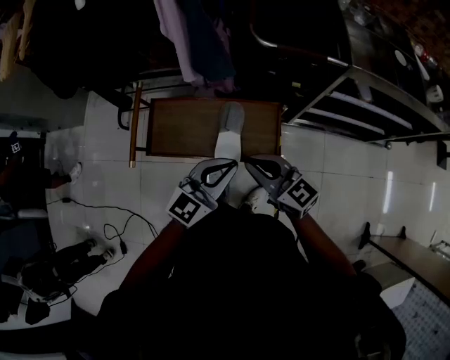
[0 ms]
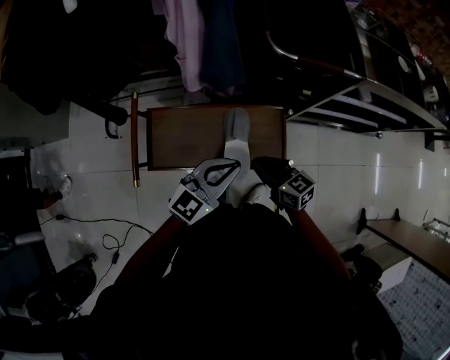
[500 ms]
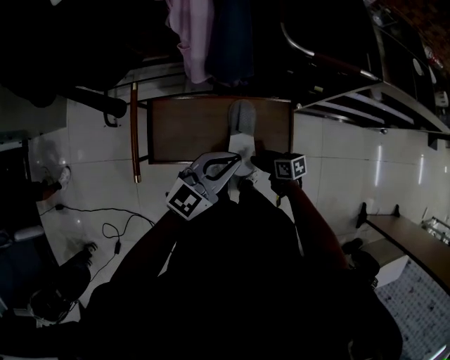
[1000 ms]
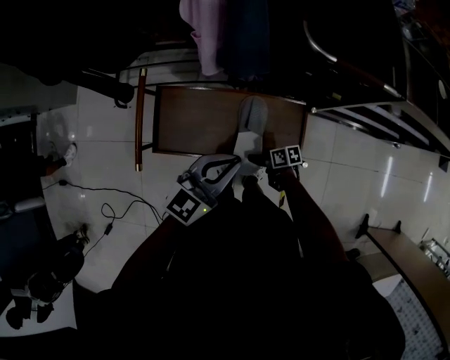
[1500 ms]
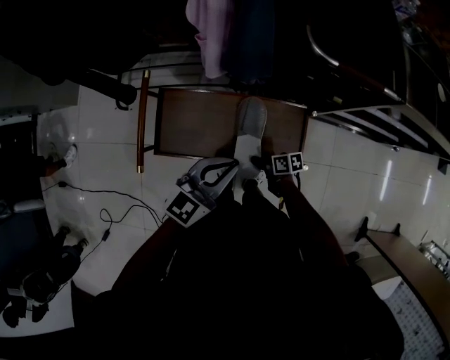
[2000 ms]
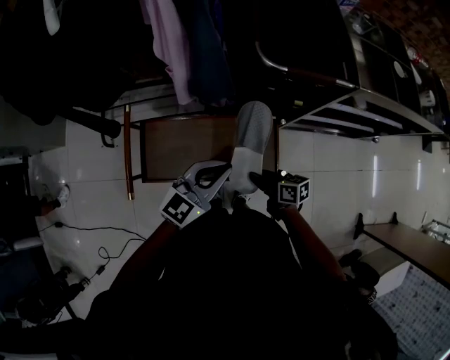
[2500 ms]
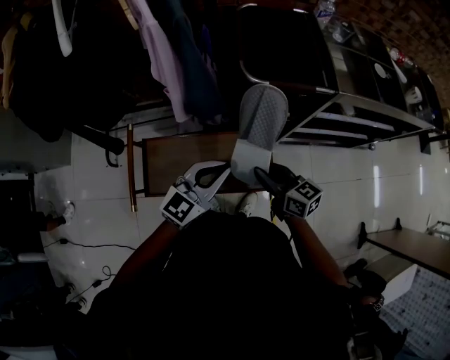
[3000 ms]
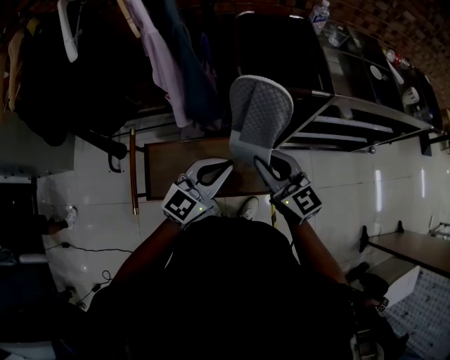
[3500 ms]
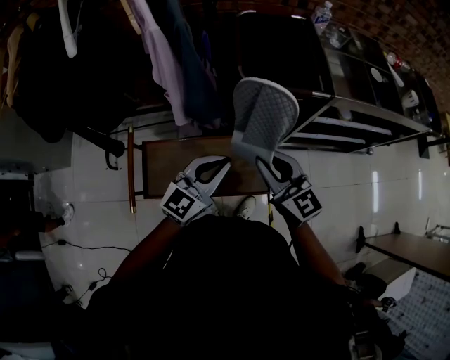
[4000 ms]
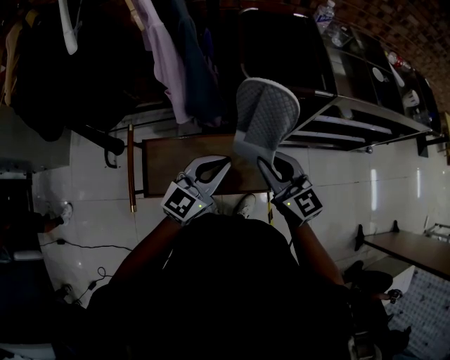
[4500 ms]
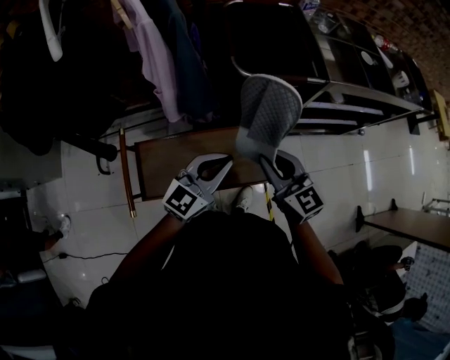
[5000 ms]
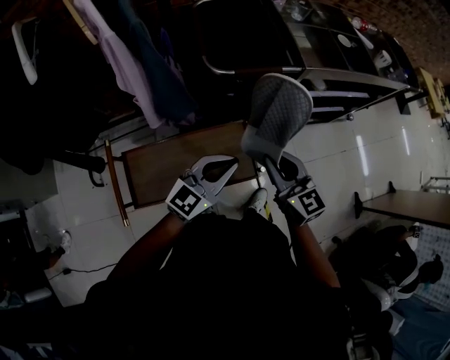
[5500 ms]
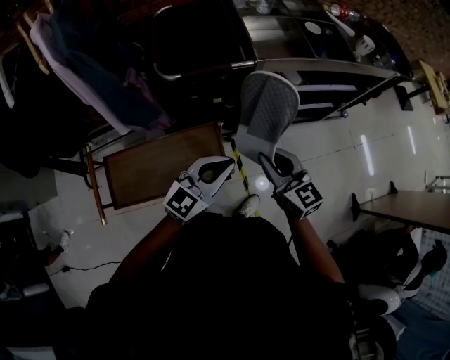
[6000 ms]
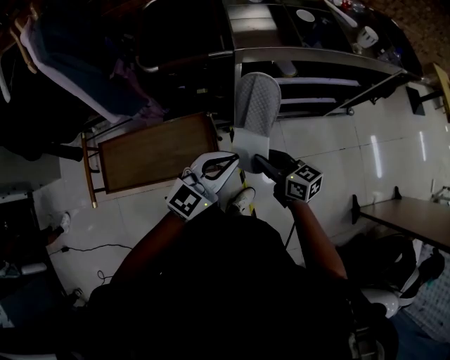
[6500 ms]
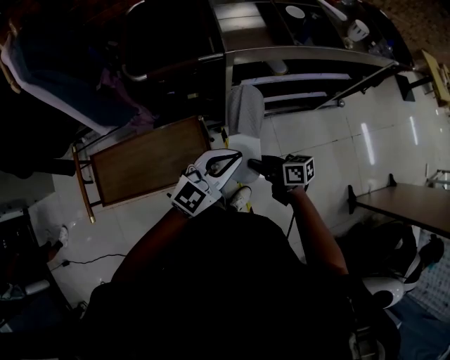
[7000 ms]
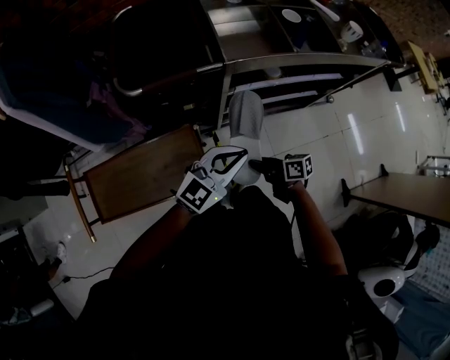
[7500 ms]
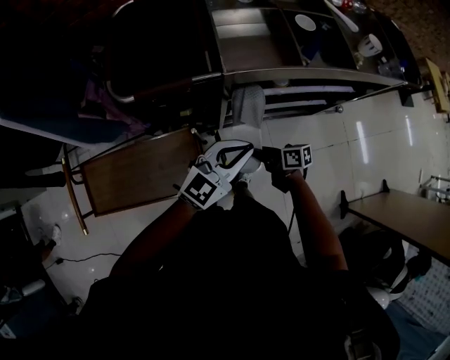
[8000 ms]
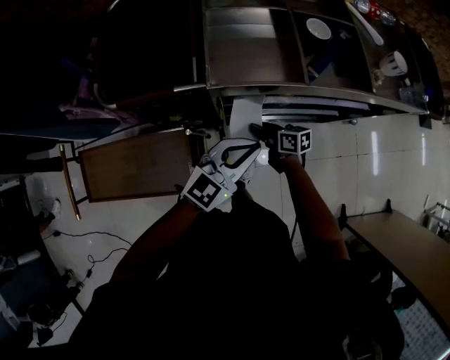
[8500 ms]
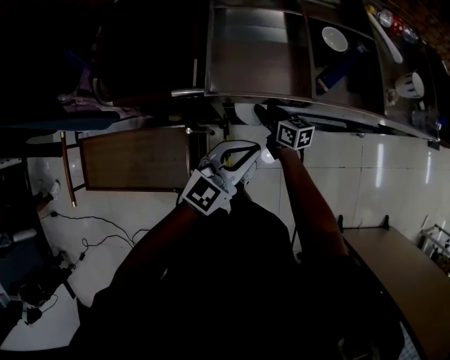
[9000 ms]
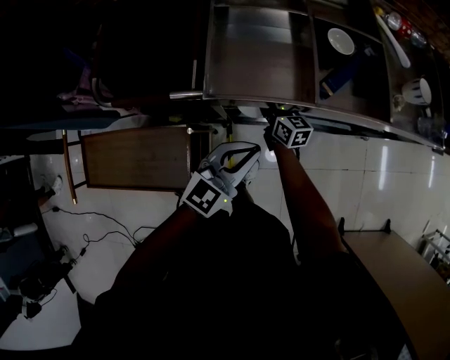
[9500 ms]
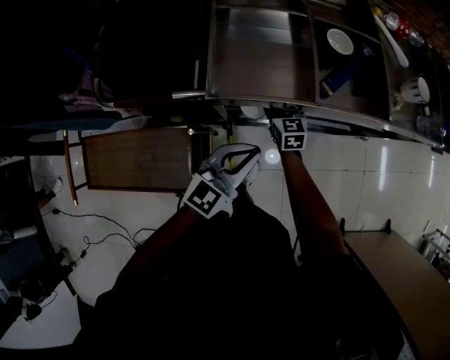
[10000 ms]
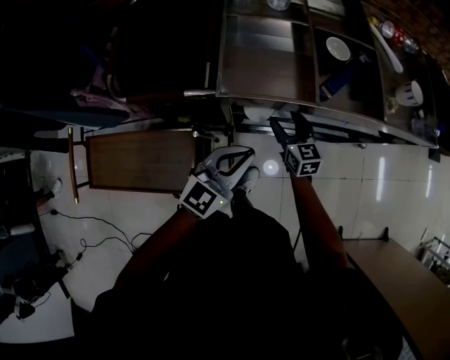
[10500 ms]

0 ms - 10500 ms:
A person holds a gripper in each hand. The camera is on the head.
0 ms - 2000 ms: The left gripper changes place by some 15 cm, while the right gripper heads downward, covering some 35 cm, rotates around the line of its fingers by roughly 50 degrees, clockwise from behind, and opens and closes again.
2000 ms - 4000 ms: The left gripper heads upward, covering about 10 cm. The right gripper heads upward, covering roughly 40 cm, and changes its angle by roughly 80 degrees.
4000 ms - 6500 ms: The left gripper travels to the right by roughly 30 cm; the right gripper goes some 35 cm to the right and downward, and rotates roughly 30 degrees.
6500 ms - 8500 ms: The left gripper heads forward and to the right, covering some 25 cm. The right gripper shifts roughly 30 cm forward and downward, and rotates roughly 20 degrees.
8500 ms - 10500 ms: The right gripper moves forward and upward, some 10 cm, rotates approximately 40 degrees, and opens up.

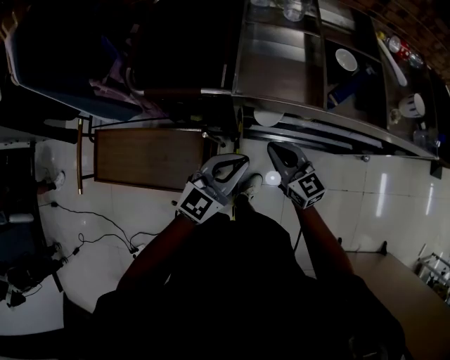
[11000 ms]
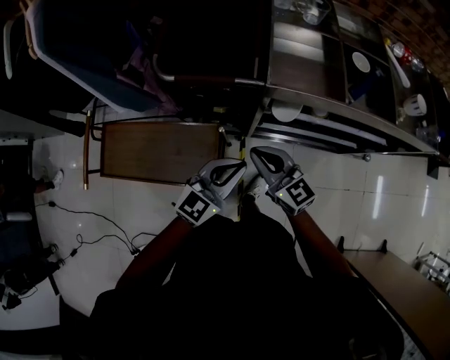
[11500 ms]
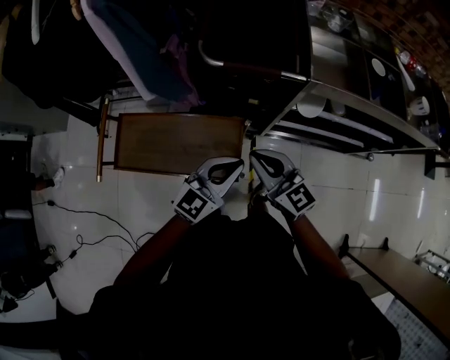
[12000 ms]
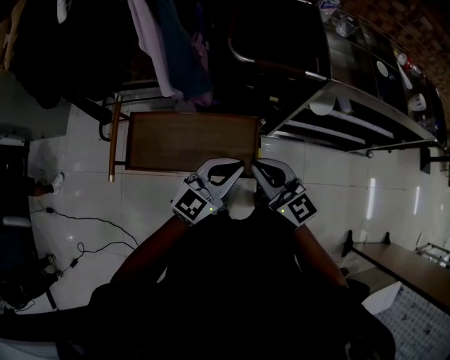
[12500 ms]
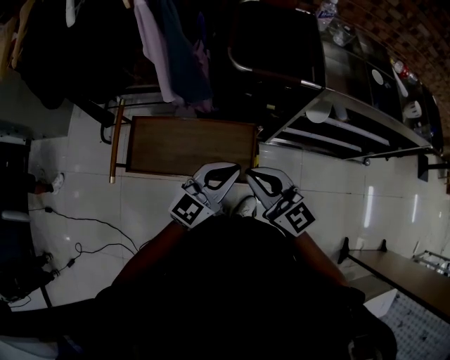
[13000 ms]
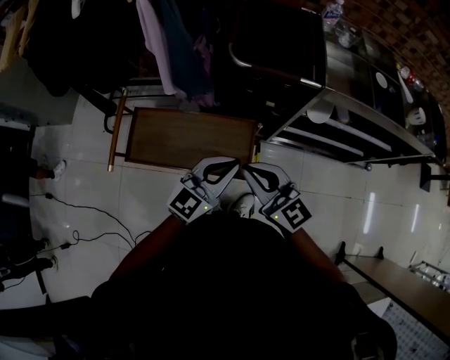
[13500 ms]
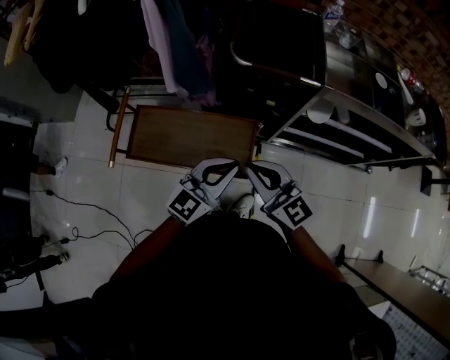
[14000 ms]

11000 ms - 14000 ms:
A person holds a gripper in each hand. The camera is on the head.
11000 ms - 12500 ms: The two grippers go roughly 35 cm to the left and backward.
12500 ms - 14000 ms: The grippers move only a little.

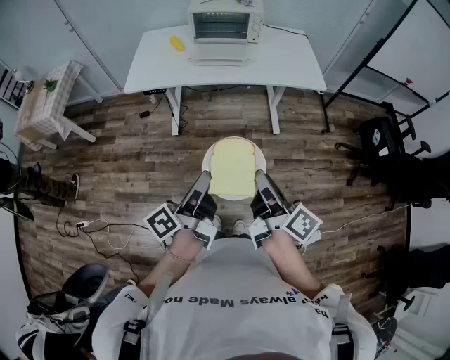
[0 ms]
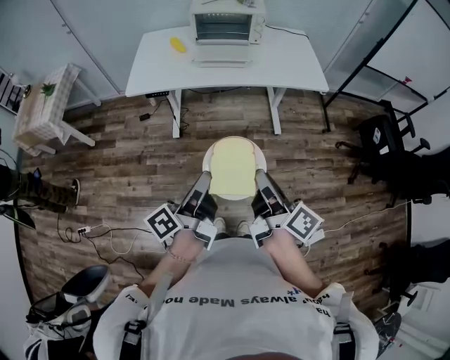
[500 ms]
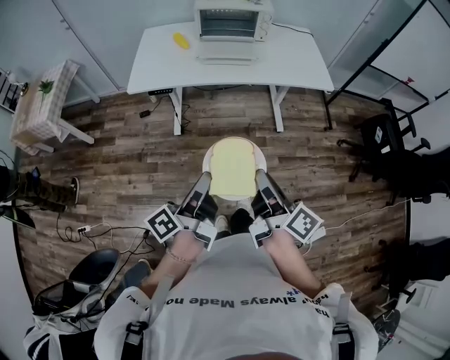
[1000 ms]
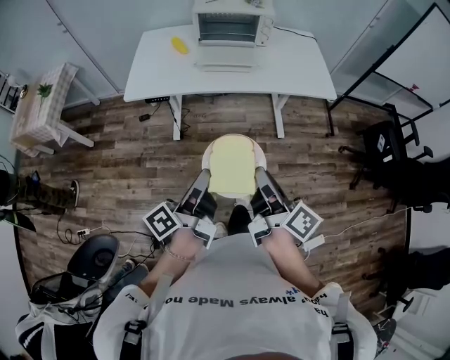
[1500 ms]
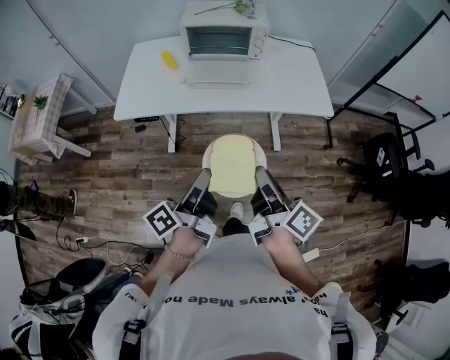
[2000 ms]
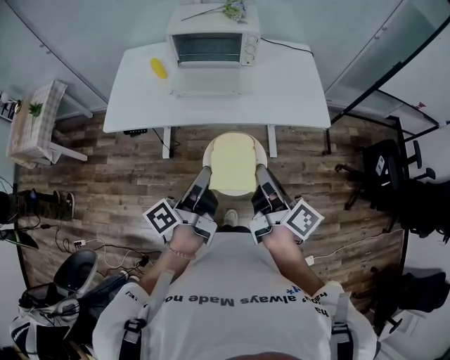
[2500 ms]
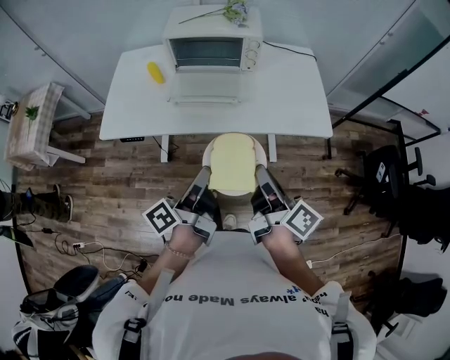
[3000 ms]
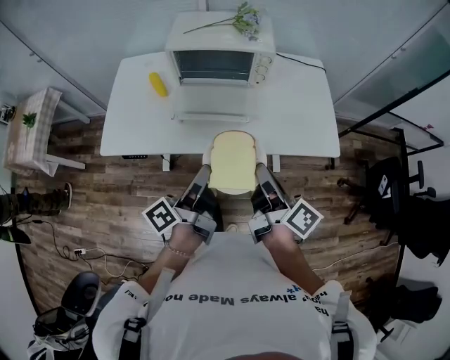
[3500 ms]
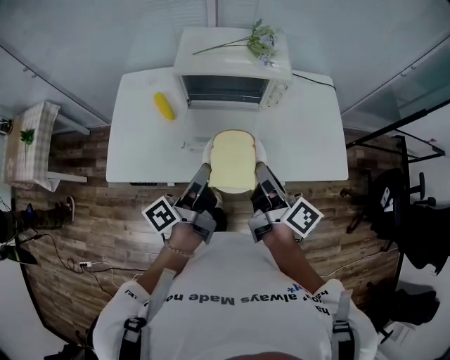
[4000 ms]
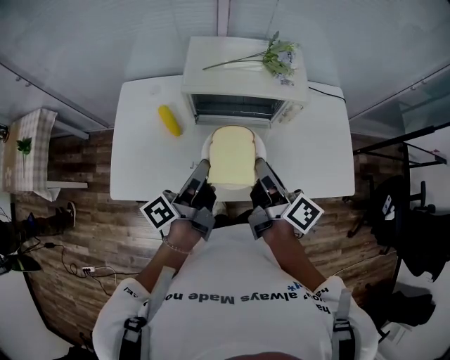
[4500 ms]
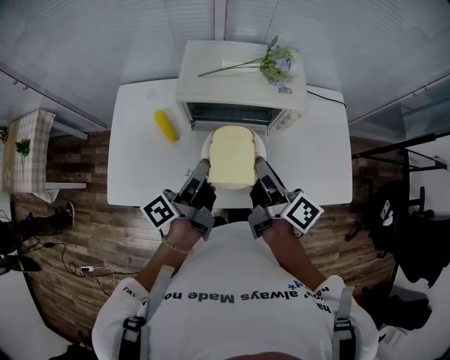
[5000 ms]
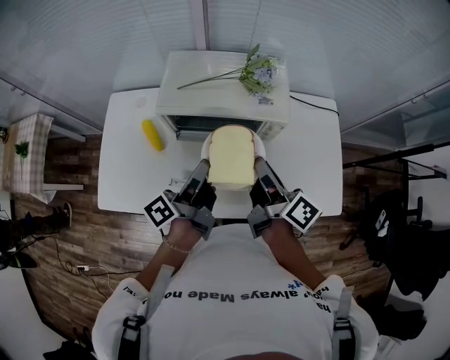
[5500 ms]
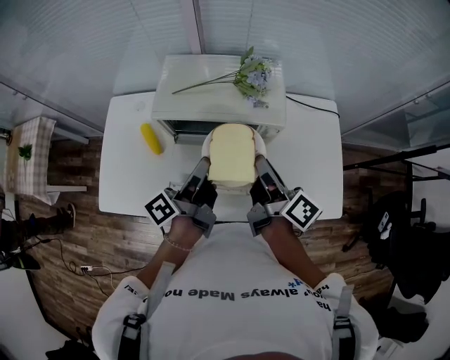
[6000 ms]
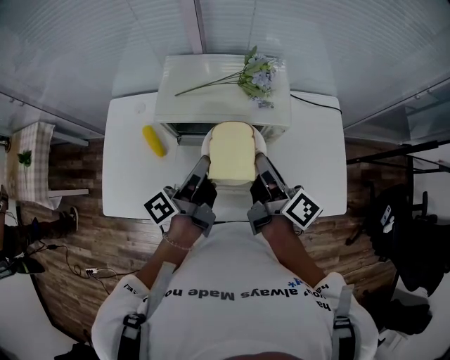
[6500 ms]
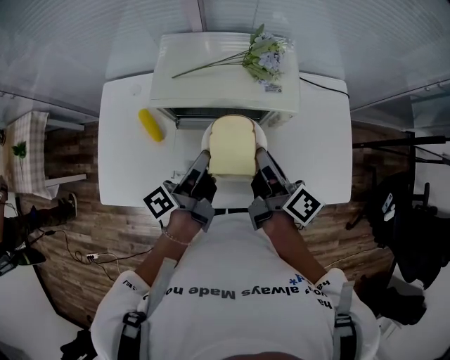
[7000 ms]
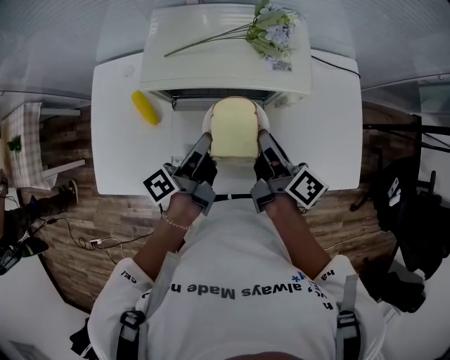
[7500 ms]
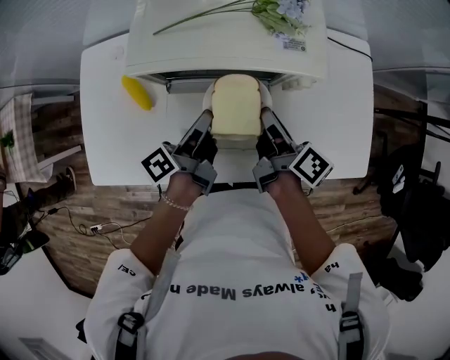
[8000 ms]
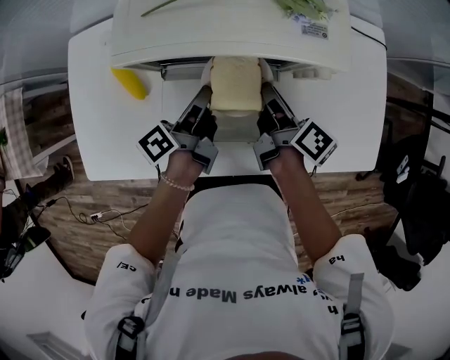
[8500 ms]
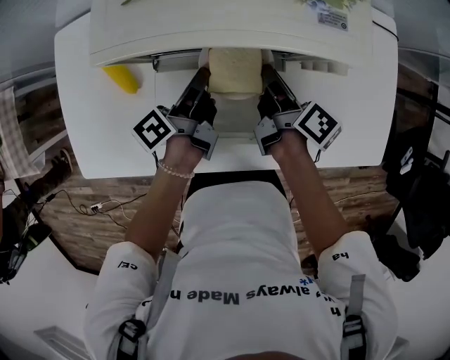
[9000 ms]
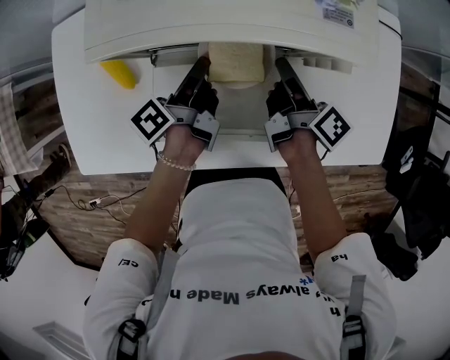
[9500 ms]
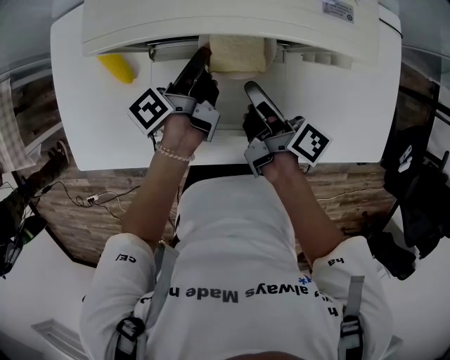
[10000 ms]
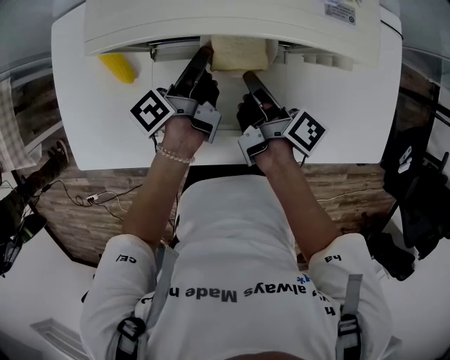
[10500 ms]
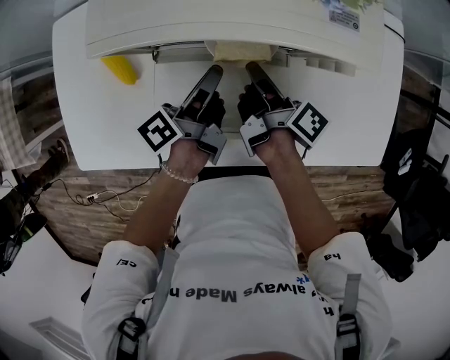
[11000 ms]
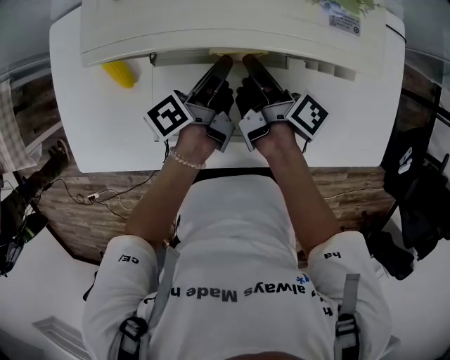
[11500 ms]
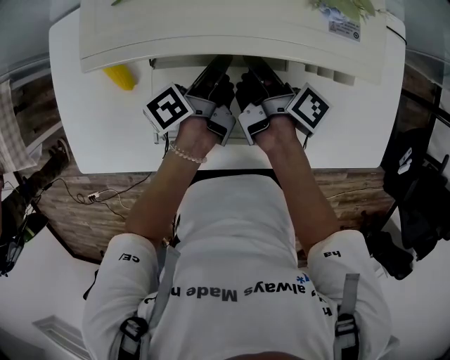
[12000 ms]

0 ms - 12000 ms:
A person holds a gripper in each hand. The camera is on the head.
0 ms - 2000 ms: The right gripper moves about 20 cm.
2000 ms - 4000 ms: The right gripper moves approximately 40 cm.
4000 ms - 6000 ms: The right gripper shifts by roughly 20 cm.
6000 ms - 8000 ms: The right gripper goes about 15 cm downward.
8000 ms - 10000 ms: The right gripper travels downward by about 10 cm.
10000 ms - 12000 ms: The right gripper ends up roughly 10 cm from where it was.

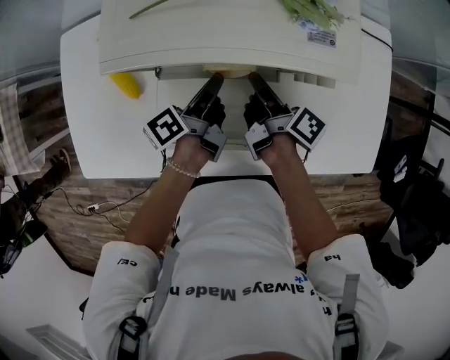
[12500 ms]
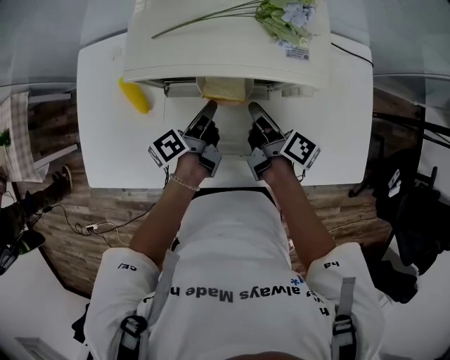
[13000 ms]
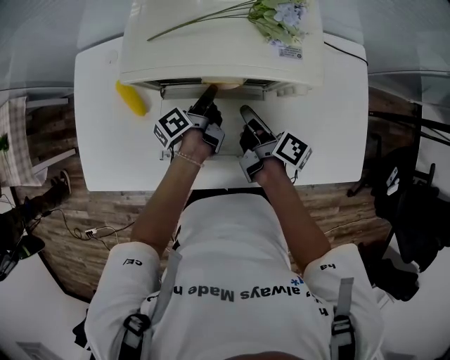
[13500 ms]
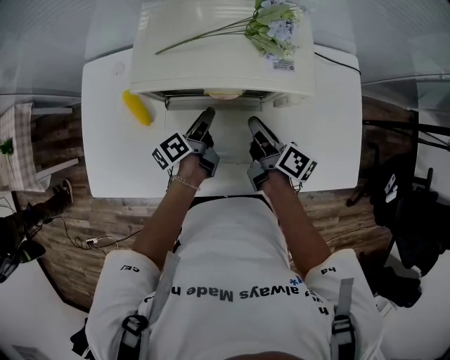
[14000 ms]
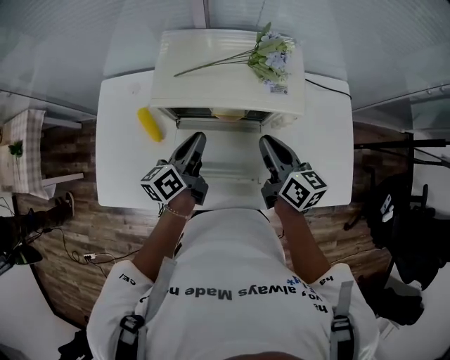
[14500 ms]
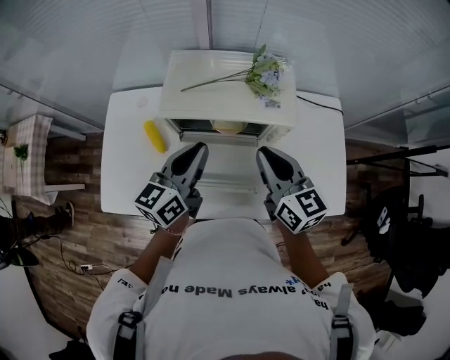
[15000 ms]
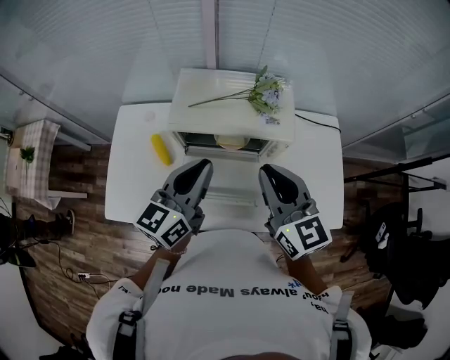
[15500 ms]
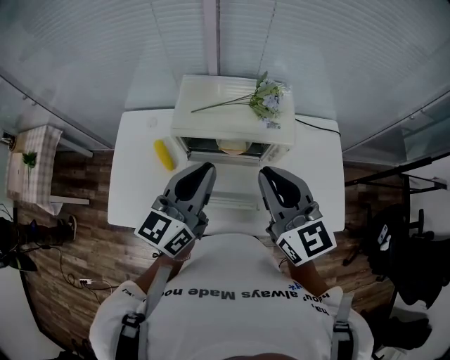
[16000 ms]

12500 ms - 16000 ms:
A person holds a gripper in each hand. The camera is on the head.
12500 ms - 14500 ms: The right gripper shifts roughly 15 cm upward, and twists about 50 degrees counterclockwise, seen from behind.
14500 ms - 16000 ms: The right gripper heads upward, covering roughly 20 cm, and rotates approximately 40 degrees.
